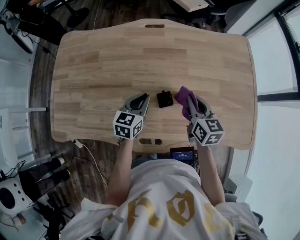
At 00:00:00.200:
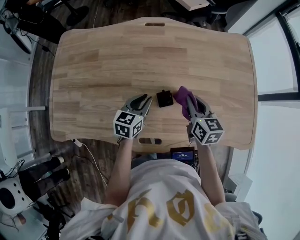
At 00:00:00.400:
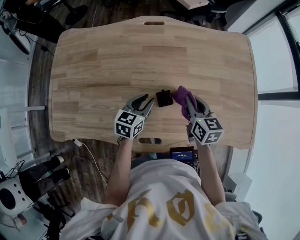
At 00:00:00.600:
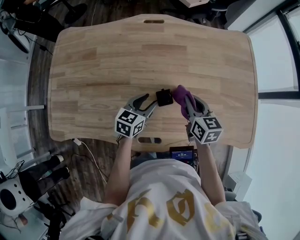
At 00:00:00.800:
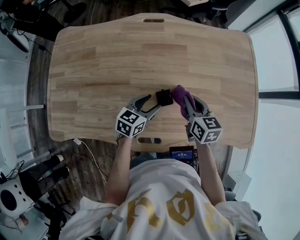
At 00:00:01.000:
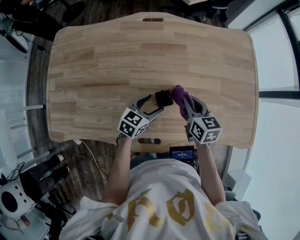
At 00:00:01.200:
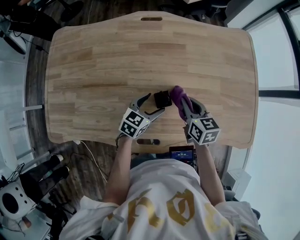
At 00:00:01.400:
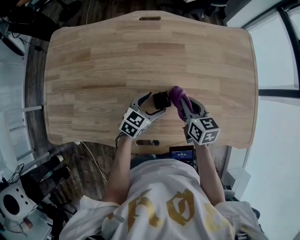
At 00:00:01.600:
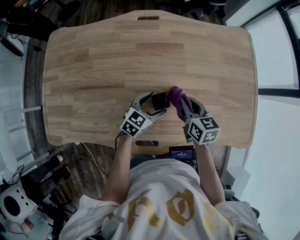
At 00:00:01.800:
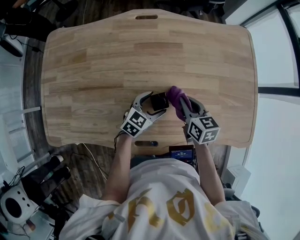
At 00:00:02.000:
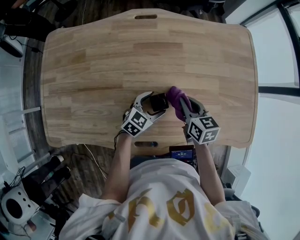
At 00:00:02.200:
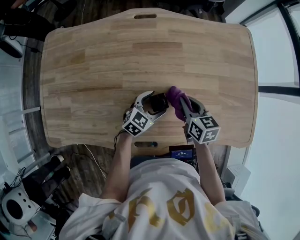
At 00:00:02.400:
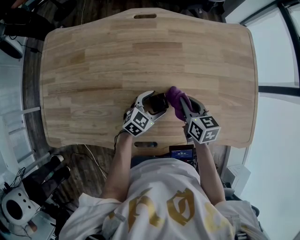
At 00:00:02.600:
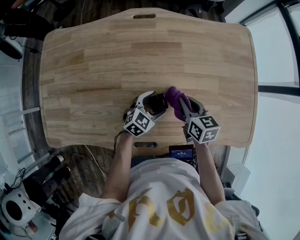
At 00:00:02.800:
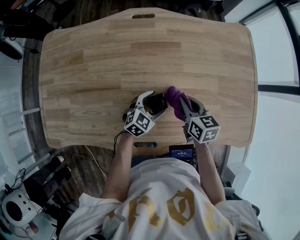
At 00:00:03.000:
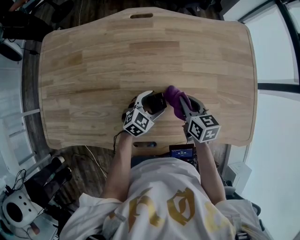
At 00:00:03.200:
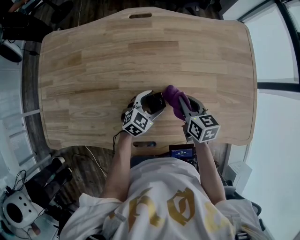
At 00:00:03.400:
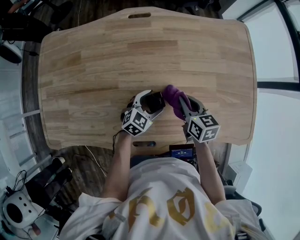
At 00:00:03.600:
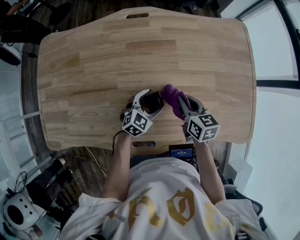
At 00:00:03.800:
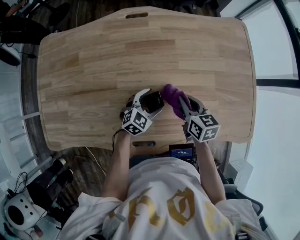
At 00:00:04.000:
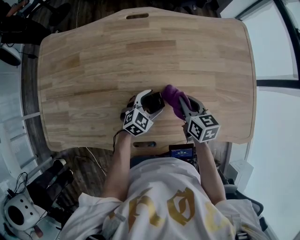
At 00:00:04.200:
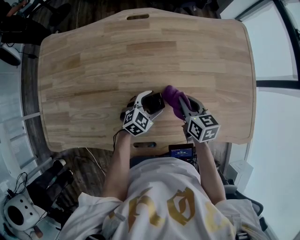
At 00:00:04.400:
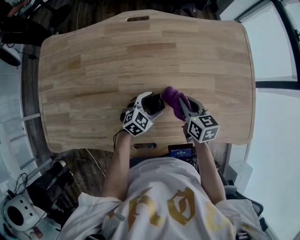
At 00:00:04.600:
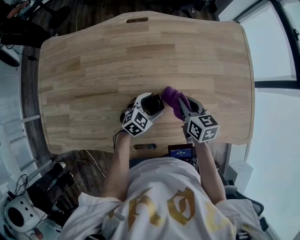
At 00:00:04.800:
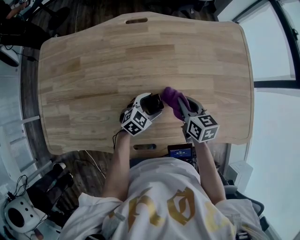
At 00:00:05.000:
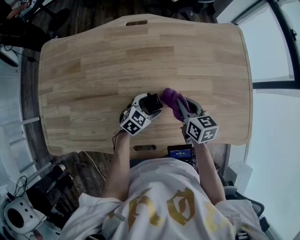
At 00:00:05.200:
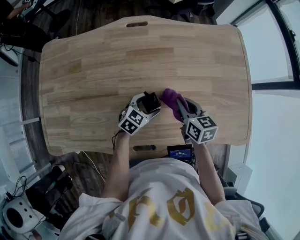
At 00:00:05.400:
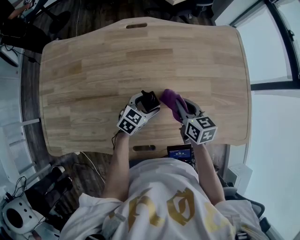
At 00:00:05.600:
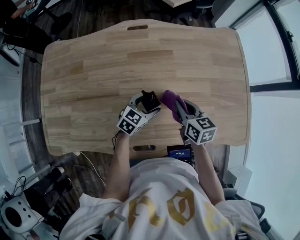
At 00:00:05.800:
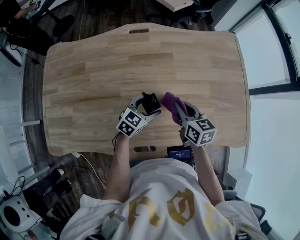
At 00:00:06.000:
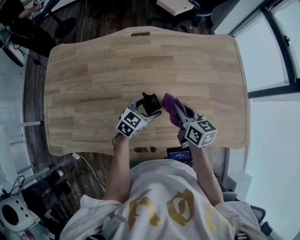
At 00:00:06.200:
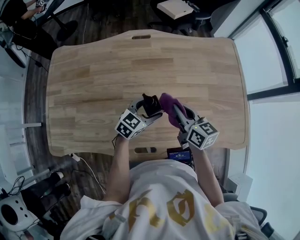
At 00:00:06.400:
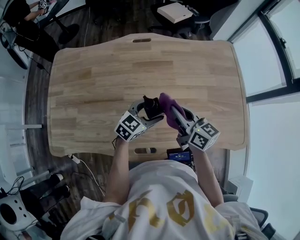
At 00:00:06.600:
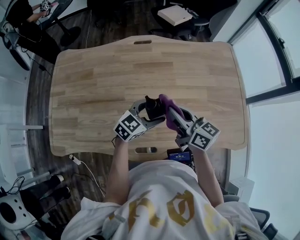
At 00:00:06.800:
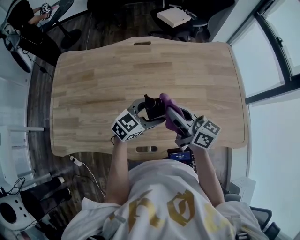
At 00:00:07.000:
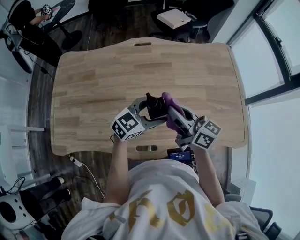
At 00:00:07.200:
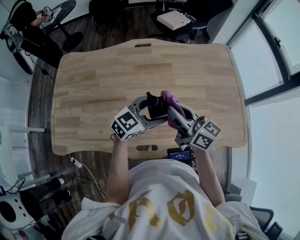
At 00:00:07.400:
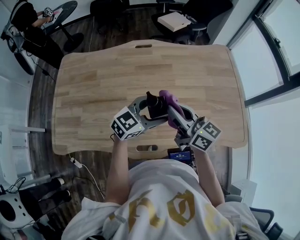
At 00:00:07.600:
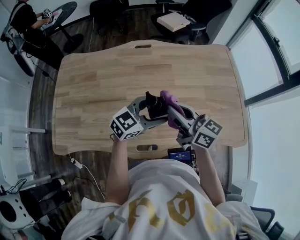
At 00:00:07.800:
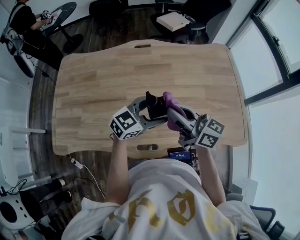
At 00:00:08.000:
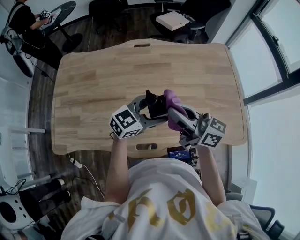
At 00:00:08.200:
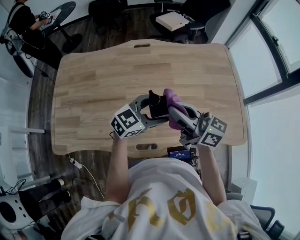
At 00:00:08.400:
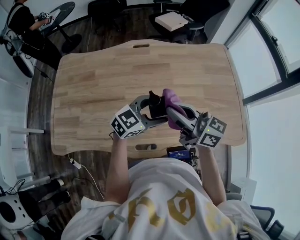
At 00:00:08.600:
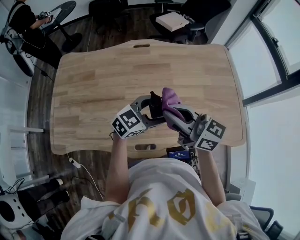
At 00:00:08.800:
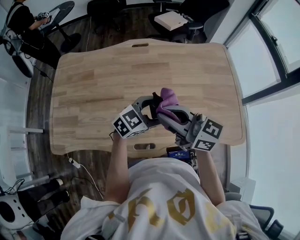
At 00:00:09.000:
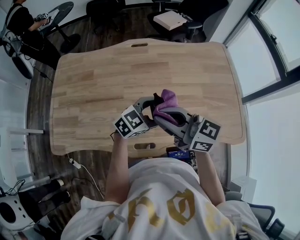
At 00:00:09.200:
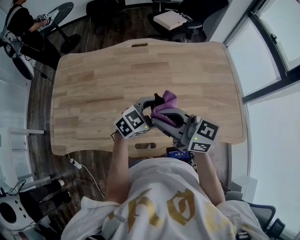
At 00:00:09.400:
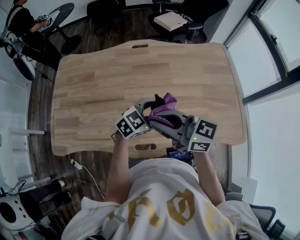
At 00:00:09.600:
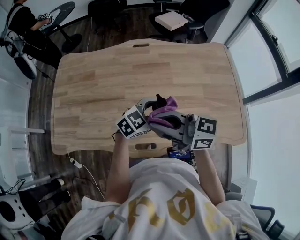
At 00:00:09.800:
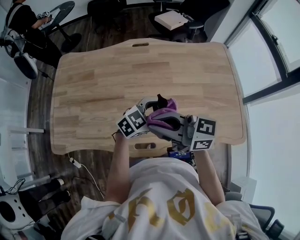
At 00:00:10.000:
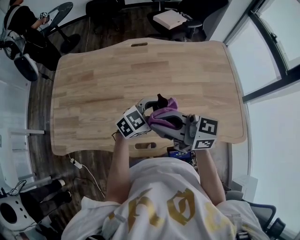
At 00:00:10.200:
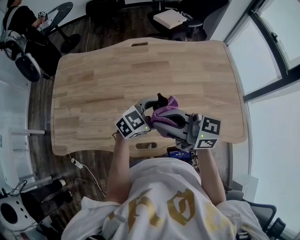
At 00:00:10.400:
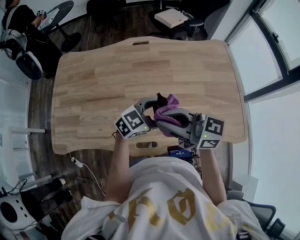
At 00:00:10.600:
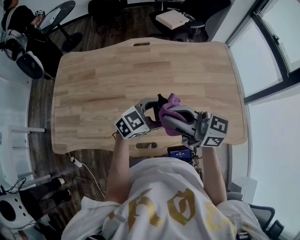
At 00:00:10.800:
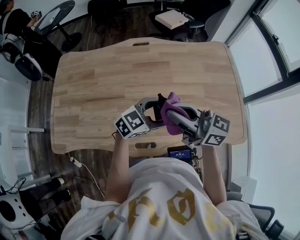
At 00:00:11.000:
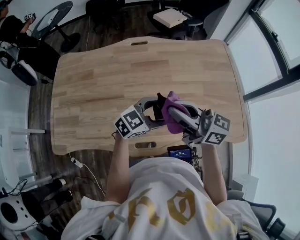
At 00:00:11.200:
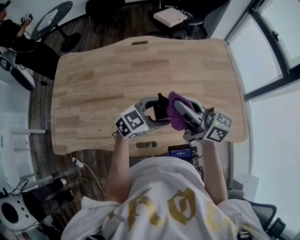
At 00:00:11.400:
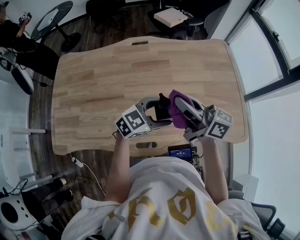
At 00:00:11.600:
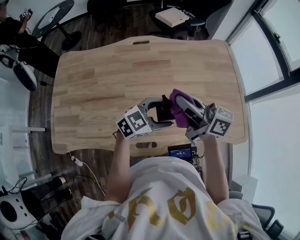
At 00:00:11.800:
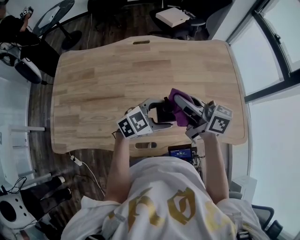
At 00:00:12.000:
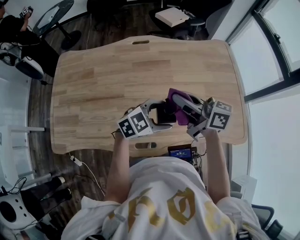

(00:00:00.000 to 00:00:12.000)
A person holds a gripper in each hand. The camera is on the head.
00:00:00.000 - 00:00:01.600: The right gripper shifts about 5 cm downward. Meanwhile the left gripper heads to the right and downward, covering some 10 cm, swivels about 30 degrees, and opens up.
00:00:01.600 - 00:00:03.000: The grippers make only small movements.
00:00:03.000 - 00:00:04.400: The grippers move only a little.
00:00:04.400 - 00:00:06.000: The two grippers go roughly 5 cm upward.
00:00:06.000 - 00:00:07.600: The left gripper moves upward, roughly 15 cm, while the right gripper travels upward and backward by about 15 cm, and turns by about 30 degrees.
00:00:07.600 - 00:00:09.000: The right gripper changes place by approximately 5 cm.
00:00:09.000 - 00:00:10.400: There are only small adjustments of the grippers.
00:00:10.400 - 00:00:12.000: The right gripper moves roughly 10 cm, and changes its angle by some 20 degrees.

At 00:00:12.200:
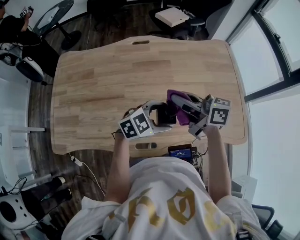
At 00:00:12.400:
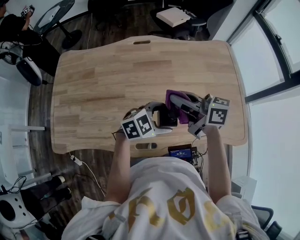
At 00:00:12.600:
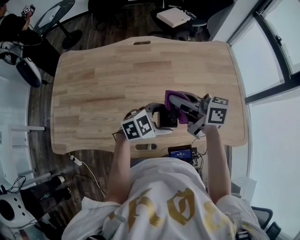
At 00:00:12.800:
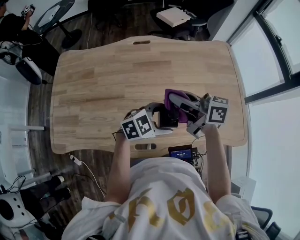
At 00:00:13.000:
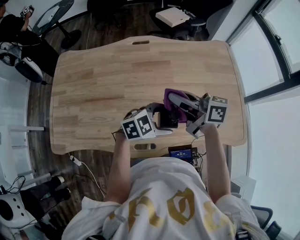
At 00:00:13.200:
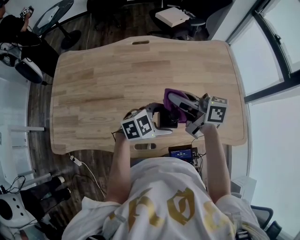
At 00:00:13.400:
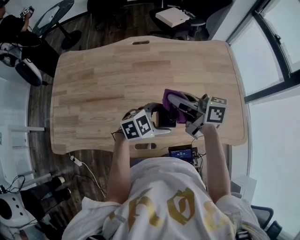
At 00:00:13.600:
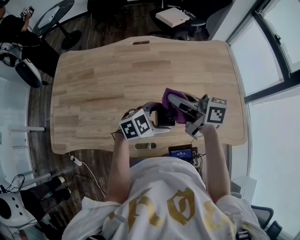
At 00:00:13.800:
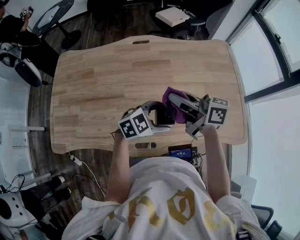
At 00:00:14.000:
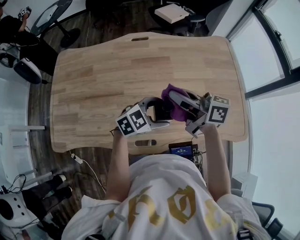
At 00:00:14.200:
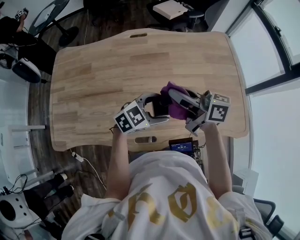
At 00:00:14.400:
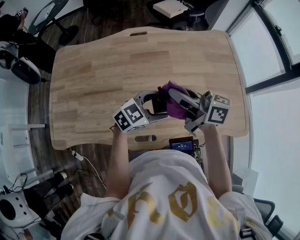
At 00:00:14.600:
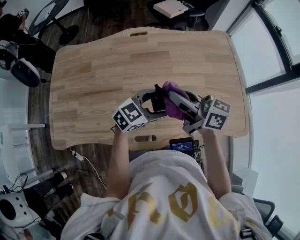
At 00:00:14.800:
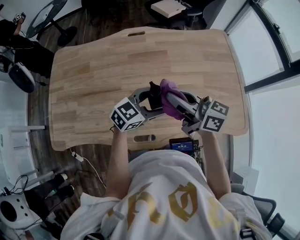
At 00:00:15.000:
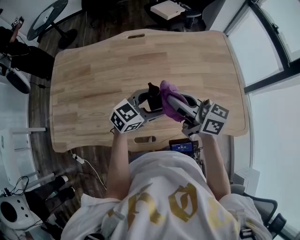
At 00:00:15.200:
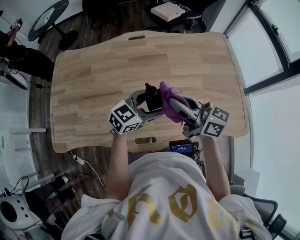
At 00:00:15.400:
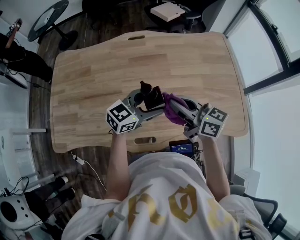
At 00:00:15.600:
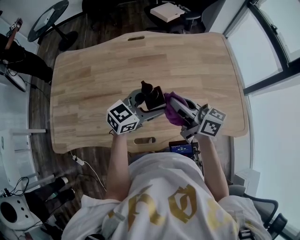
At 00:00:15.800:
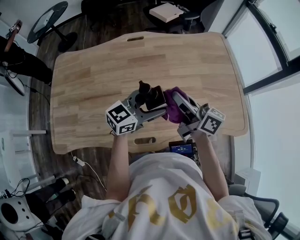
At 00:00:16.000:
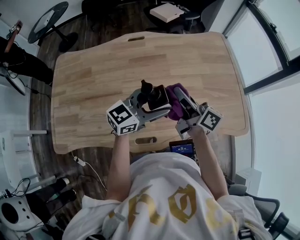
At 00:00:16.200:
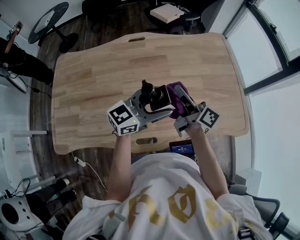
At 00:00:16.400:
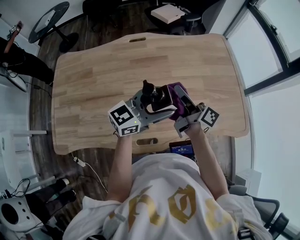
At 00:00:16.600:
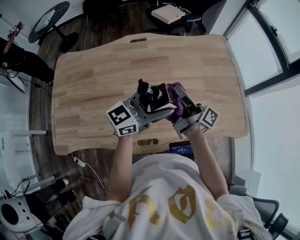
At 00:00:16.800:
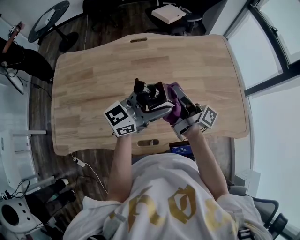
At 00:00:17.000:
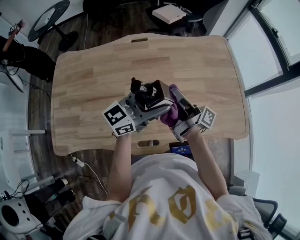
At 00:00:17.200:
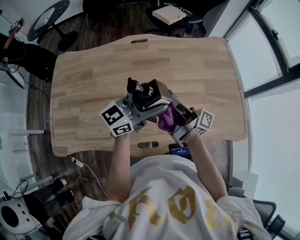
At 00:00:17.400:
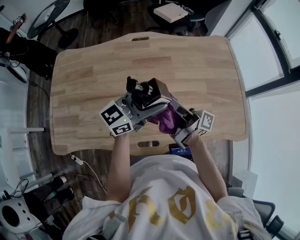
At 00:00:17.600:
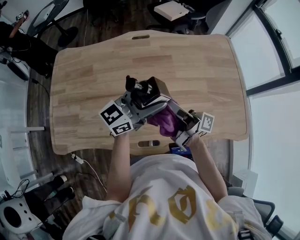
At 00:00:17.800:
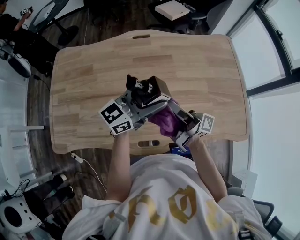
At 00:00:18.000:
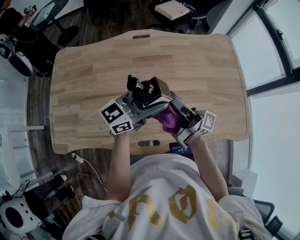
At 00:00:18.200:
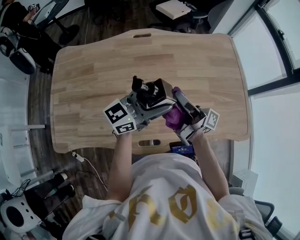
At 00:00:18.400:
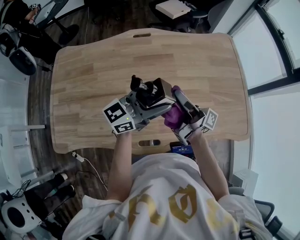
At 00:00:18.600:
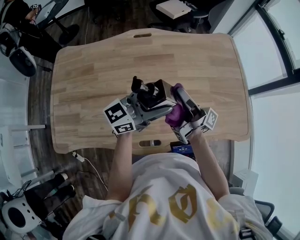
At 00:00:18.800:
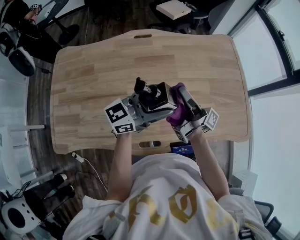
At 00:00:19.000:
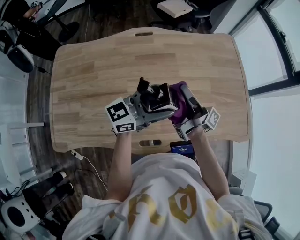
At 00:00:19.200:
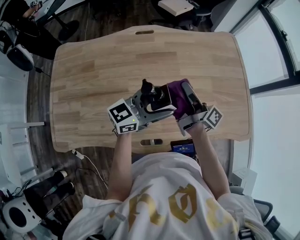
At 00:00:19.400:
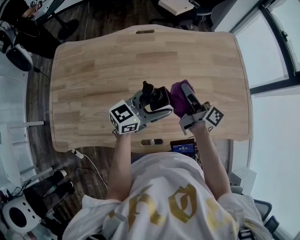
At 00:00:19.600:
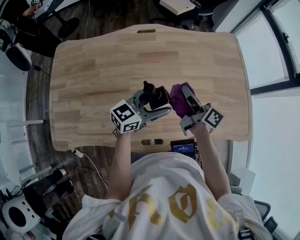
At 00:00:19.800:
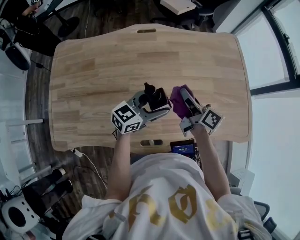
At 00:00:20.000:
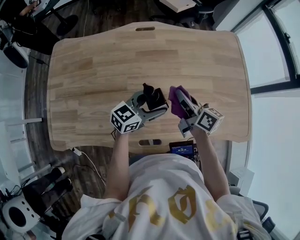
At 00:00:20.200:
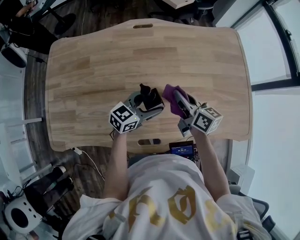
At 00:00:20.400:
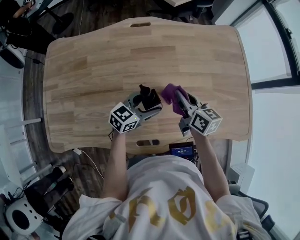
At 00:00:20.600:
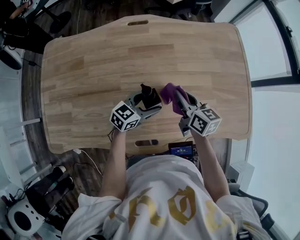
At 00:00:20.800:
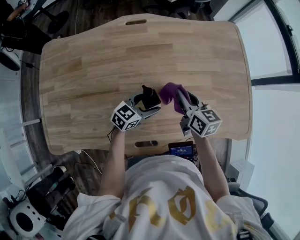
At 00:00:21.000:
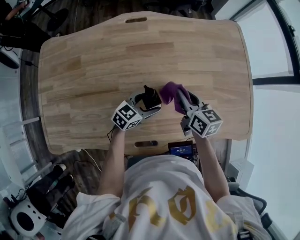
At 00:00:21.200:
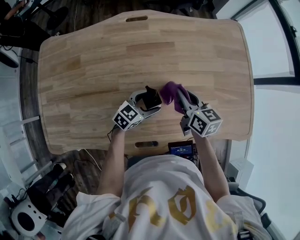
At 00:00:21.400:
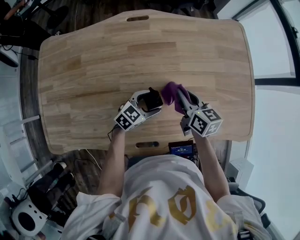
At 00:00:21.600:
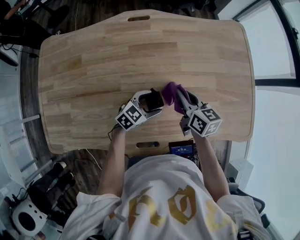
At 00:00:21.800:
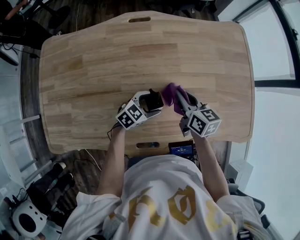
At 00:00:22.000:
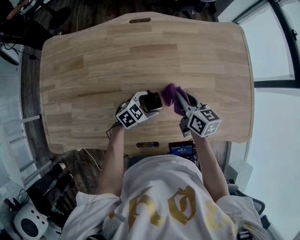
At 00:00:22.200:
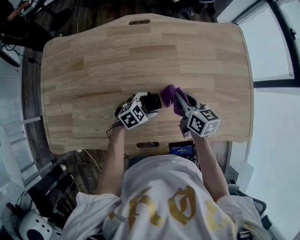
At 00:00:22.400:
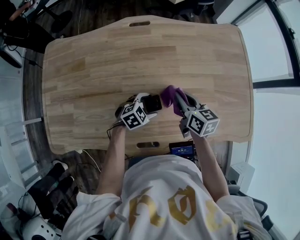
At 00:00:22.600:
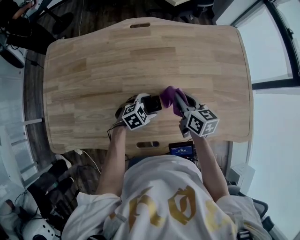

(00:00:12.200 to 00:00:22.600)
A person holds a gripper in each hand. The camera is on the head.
00:00:12.200 - 00:00:13.600: The grippers move only a little.
00:00:13.600 - 00:00:15.200: The left gripper ends up some 5 cm from where it was, and turns by approximately 30 degrees.
00:00:15.200 - 00:00:16.600: The left gripper goes about 10 cm upward, and swivels about 20 degrees; the right gripper shifts some 5 cm forward, and twists approximately 40 degrees clockwise, seen from behind.
00:00:18.200 - 00:00:19.600: The two grippers go approximately 10 cm downward. The right gripper swivels roughly 40 degrees.
00:00:19.600 - 00:00:21.200: The left gripper moves downward, roughly 15 cm, and changes its angle by roughly 20 degrees, while the right gripper heads downward, covering approximately 10 cm, and turns by roughly 40 degrees.
00:00:21.200 - 00:00:22.600: The left gripper rotates about 30 degrees.

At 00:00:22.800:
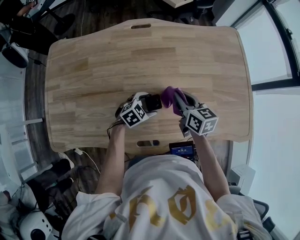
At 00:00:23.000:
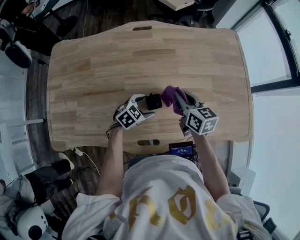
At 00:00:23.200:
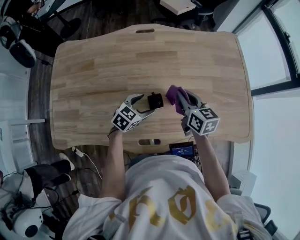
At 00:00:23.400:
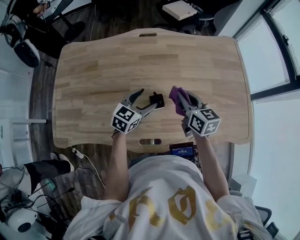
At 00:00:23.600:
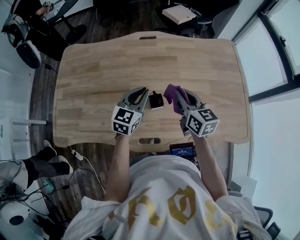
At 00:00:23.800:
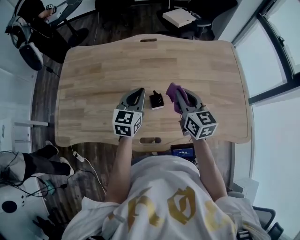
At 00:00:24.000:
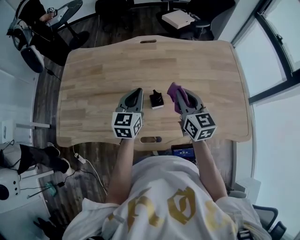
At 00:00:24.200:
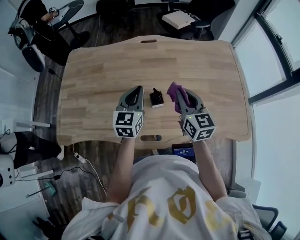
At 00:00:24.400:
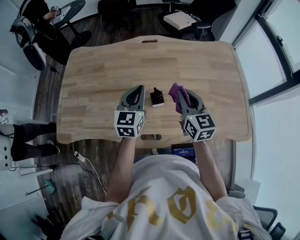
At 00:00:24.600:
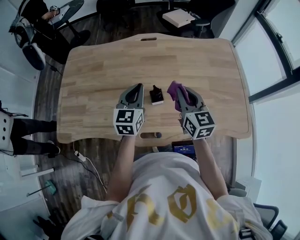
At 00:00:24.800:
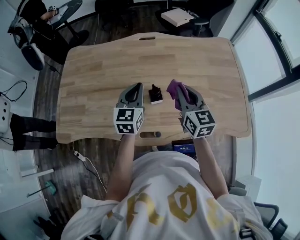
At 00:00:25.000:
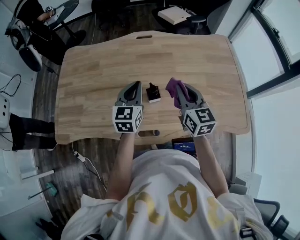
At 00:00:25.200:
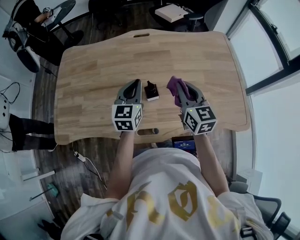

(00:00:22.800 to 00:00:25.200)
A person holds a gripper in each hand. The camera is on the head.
00:00:22.800 - 00:00:24.000: The right gripper heads upward and backward, covering approximately 15 cm, and changes its angle by roughly 20 degrees; the left gripper travels upward by some 20 cm, angles its fingers upward, by about 40 degrees, and closes up.
00:00:24.000 - 00:00:25.200: The grippers move only a little.
